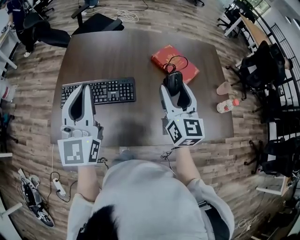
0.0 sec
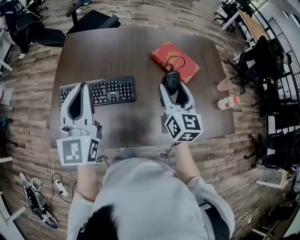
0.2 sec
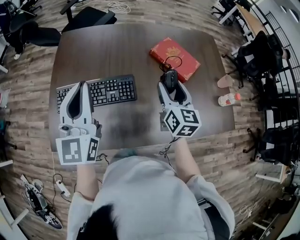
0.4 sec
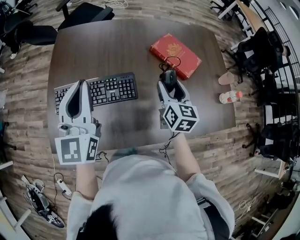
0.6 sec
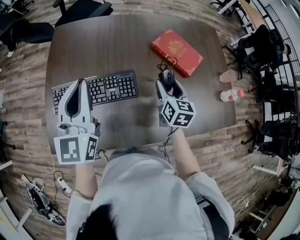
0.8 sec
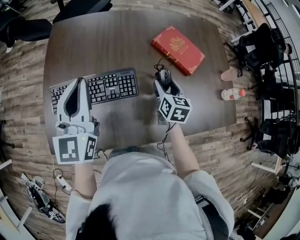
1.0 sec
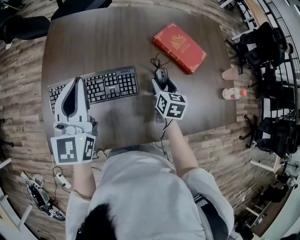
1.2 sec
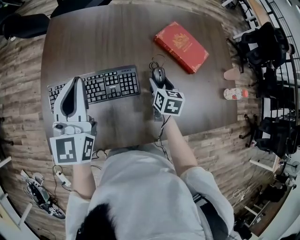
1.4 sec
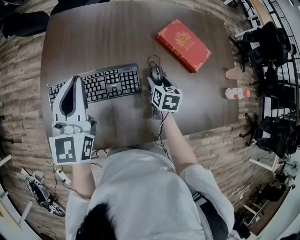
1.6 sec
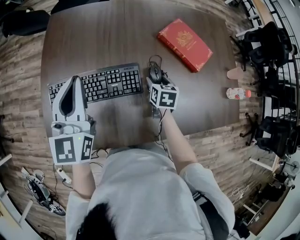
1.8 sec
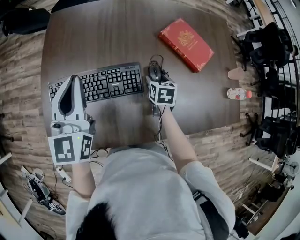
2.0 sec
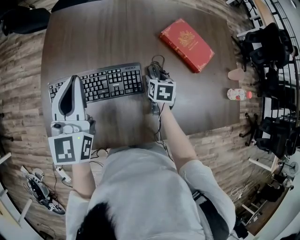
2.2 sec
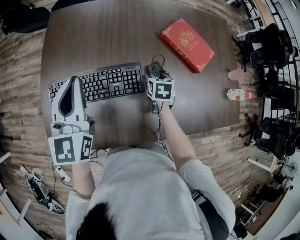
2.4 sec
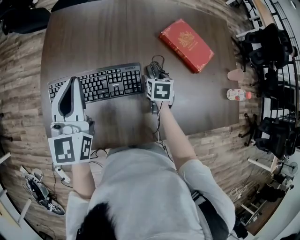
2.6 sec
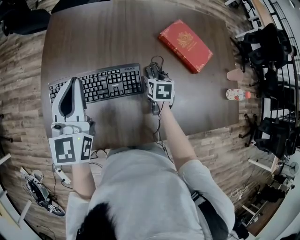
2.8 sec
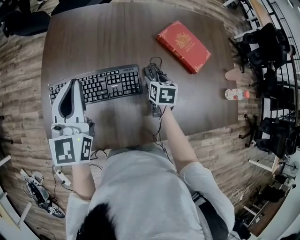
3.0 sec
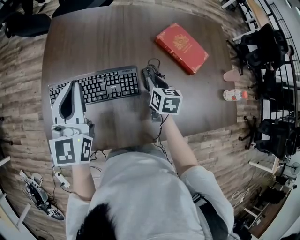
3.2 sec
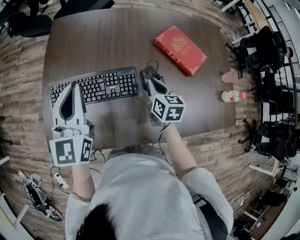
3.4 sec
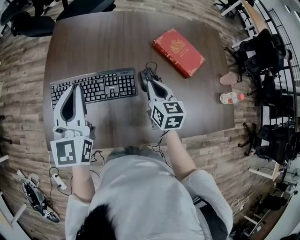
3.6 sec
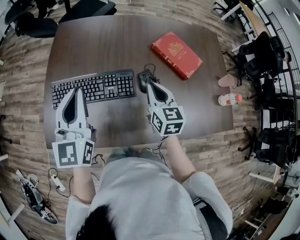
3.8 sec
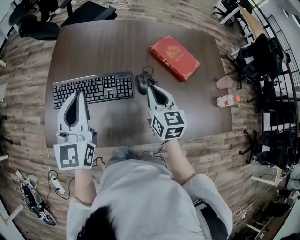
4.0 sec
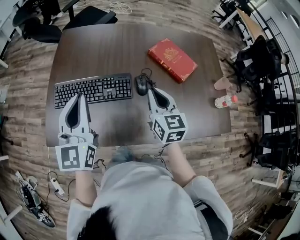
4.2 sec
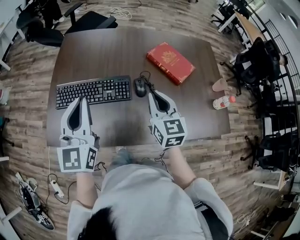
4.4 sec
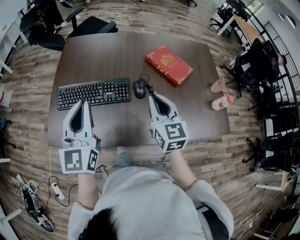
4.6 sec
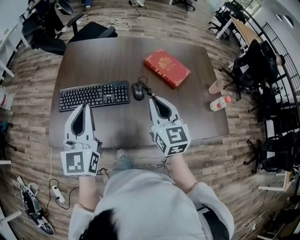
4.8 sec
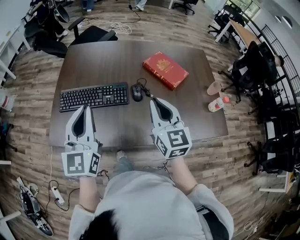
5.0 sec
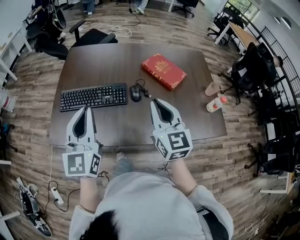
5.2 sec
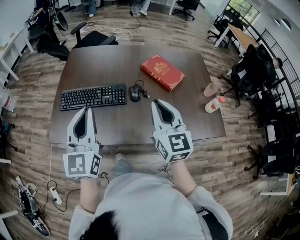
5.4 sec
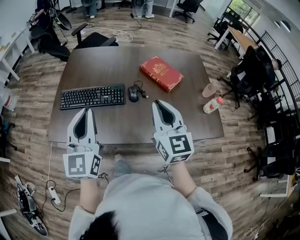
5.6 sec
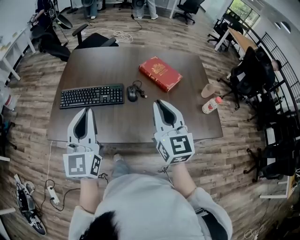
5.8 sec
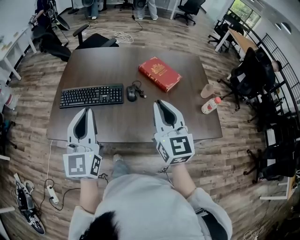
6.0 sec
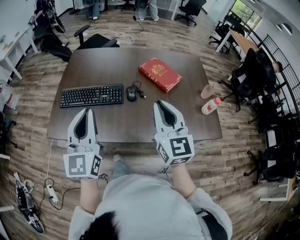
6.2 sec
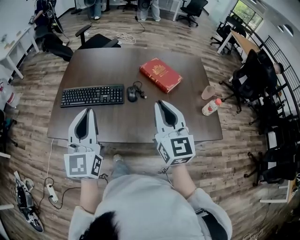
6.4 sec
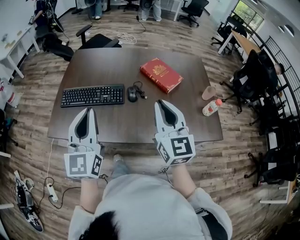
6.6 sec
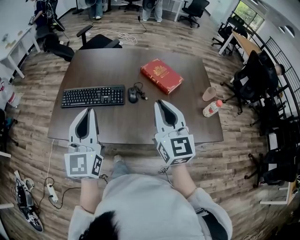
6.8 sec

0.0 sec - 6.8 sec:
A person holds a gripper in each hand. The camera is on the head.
0.0 sec - 1.4 sec: The left gripper shifts about 15 cm forward, downward and to the left. The right gripper moves downward, about 25 cm, and tilts its fingers some 40 degrees downward.
1.4 sec - 2.8 sec: The right gripper heads downward, covering about 5 cm.
2.8 sec - 4.0 sec: The left gripper moves backward, some 10 cm. The right gripper is displaced upward and backward by roughly 20 cm, points its fingers approximately 30 degrees further upward, and closes.
4.0 sec - 5.4 sec: The right gripper shifts about 20 cm backward and upward. Meanwhile the left gripper is displaced backward and to the right by roughly 15 cm.
5.4 sec - 6.8 sec: The right gripper changes place by roughly 5 cm.

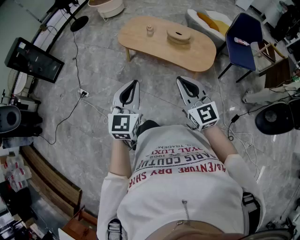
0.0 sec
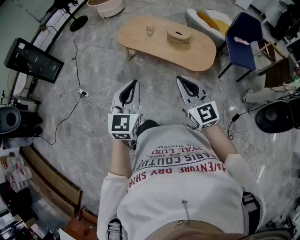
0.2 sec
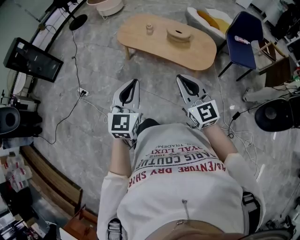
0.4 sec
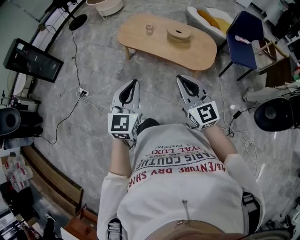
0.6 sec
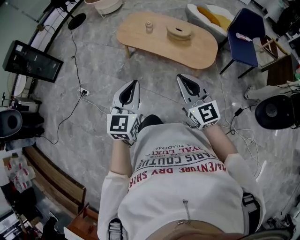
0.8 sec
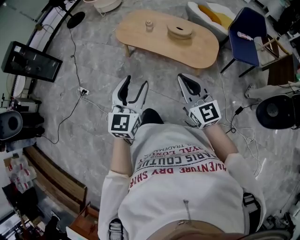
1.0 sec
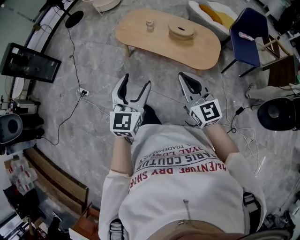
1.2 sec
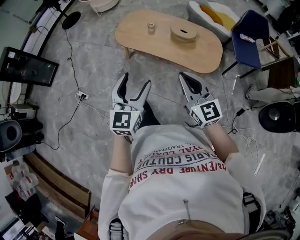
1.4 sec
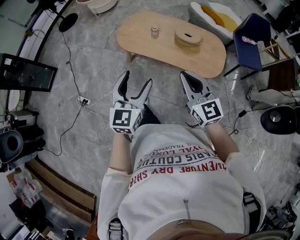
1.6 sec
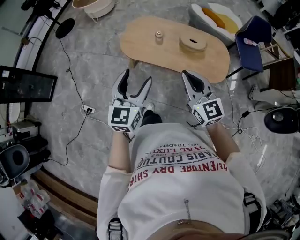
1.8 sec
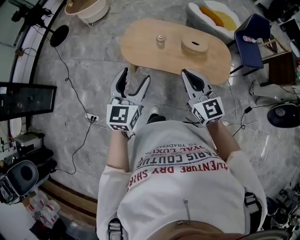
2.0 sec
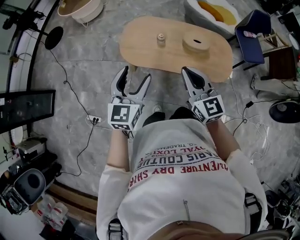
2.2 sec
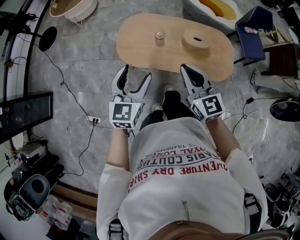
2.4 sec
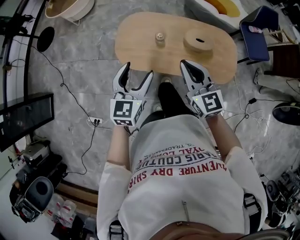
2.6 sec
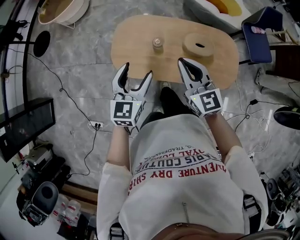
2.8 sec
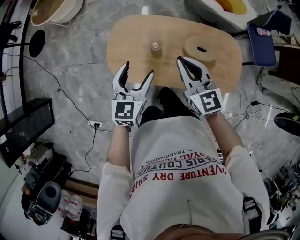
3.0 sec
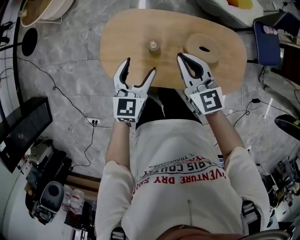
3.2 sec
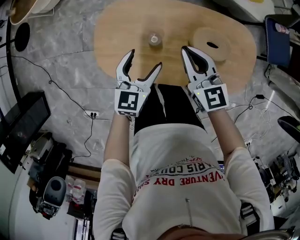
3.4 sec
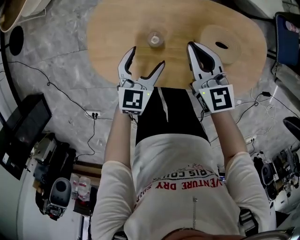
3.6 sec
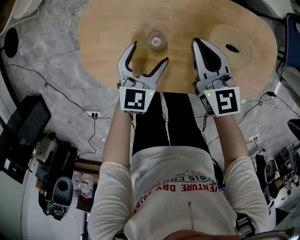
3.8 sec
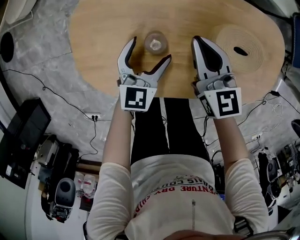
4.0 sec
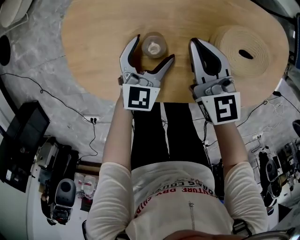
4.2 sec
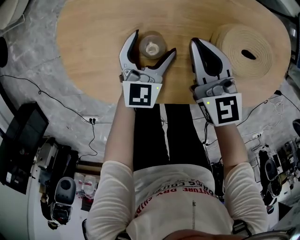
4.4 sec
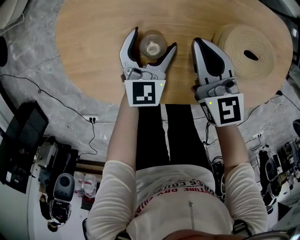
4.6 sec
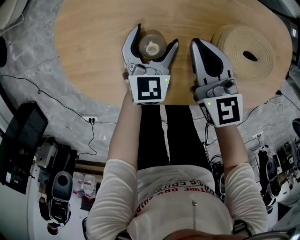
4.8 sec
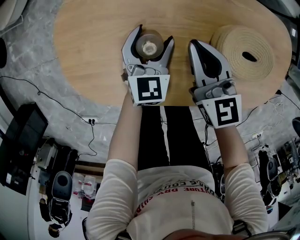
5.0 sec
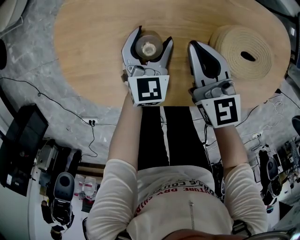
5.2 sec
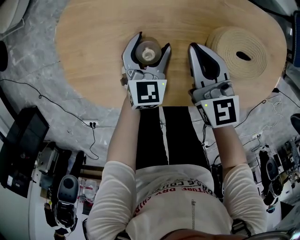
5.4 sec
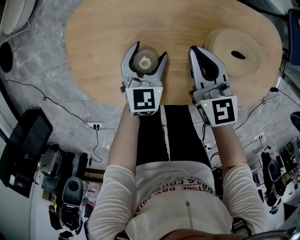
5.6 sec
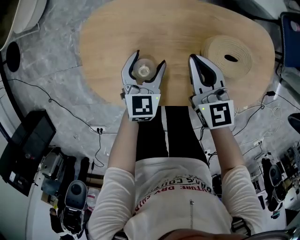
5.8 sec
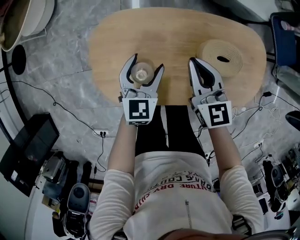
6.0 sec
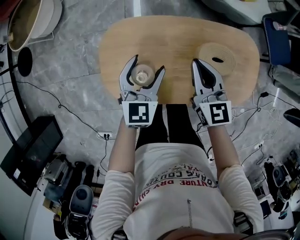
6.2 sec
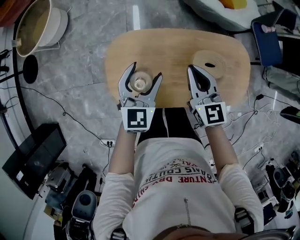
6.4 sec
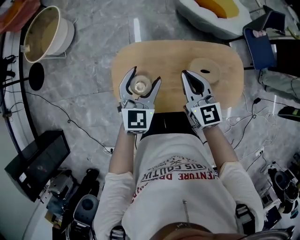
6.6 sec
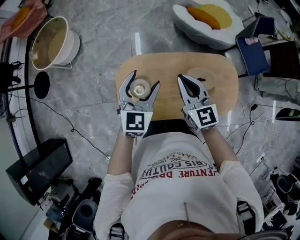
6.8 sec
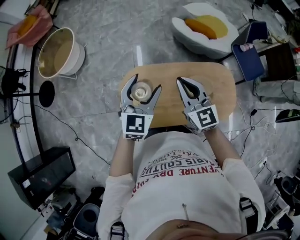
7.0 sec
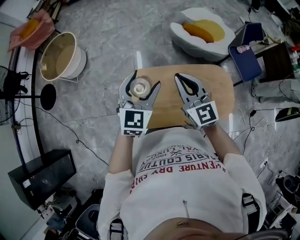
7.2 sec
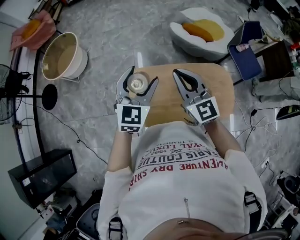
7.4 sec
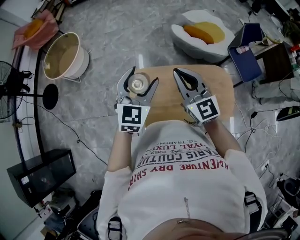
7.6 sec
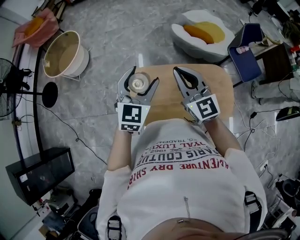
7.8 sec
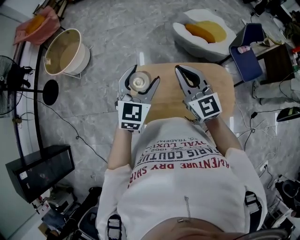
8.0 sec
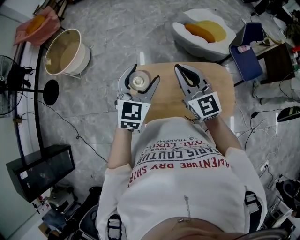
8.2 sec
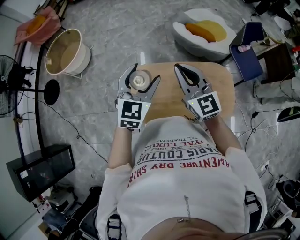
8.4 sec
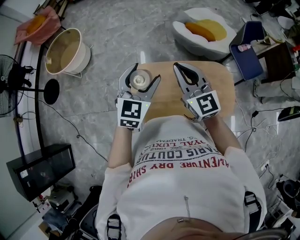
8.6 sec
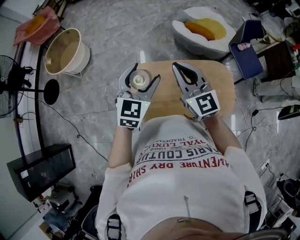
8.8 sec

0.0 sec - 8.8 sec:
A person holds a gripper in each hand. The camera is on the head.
0.0 sec - 1.4 sec: Both grippers move forward, roughly 15 cm. The left gripper opens up.
1.4 sec - 3.0 sec: Both grippers are carried forward, roughly 50 cm. The left gripper swivels some 20 degrees.
3.0 sec - 4.4 sec: The two grippers go some 35 cm downward.
4.4 sec - 5.8 sec: Both grippers travel together upward, some 10 cm.
5.8 sec - 7.4 sec: The two grippers go about 40 cm upward. The right gripper changes its angle by about 30 degrees. Meanwhile the left gripper rotates about 30 degrees.
7.4 sec - 8.8 sec: The grippers make only small movements.

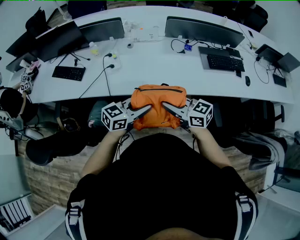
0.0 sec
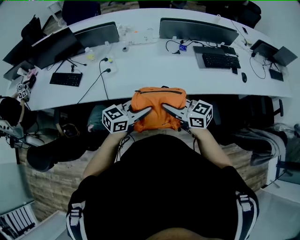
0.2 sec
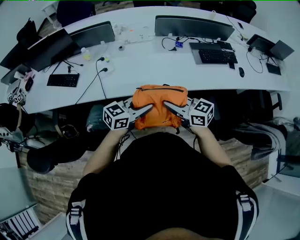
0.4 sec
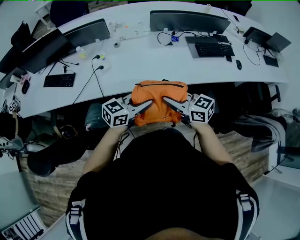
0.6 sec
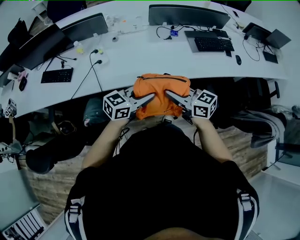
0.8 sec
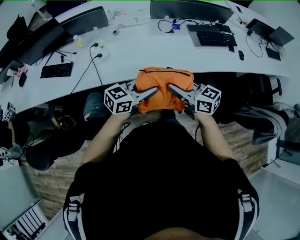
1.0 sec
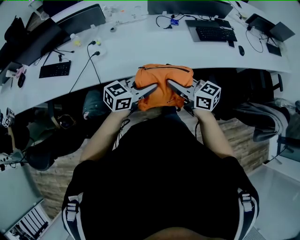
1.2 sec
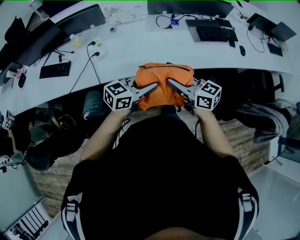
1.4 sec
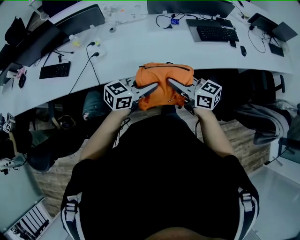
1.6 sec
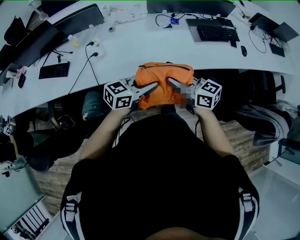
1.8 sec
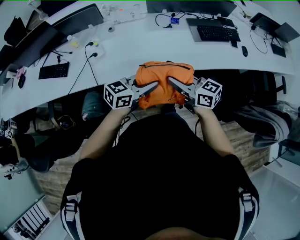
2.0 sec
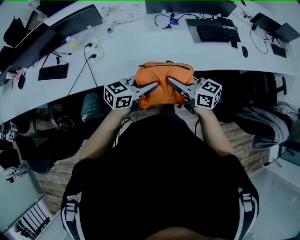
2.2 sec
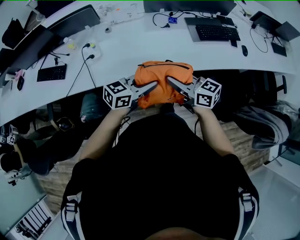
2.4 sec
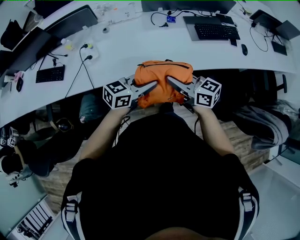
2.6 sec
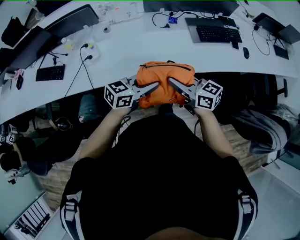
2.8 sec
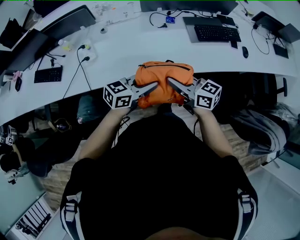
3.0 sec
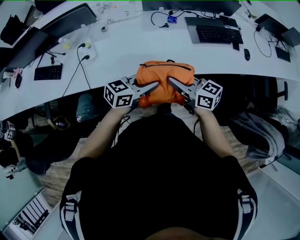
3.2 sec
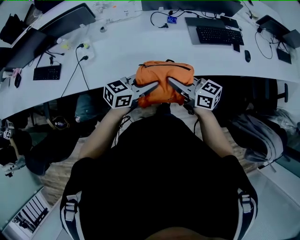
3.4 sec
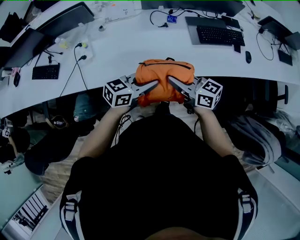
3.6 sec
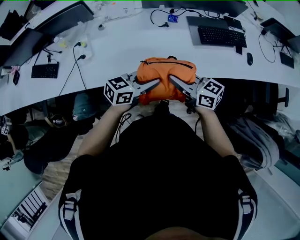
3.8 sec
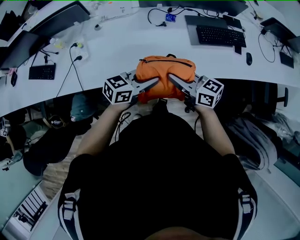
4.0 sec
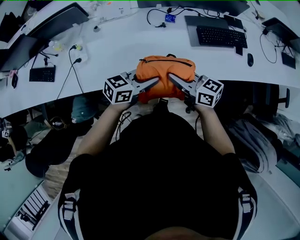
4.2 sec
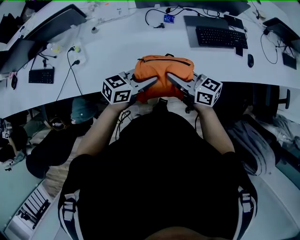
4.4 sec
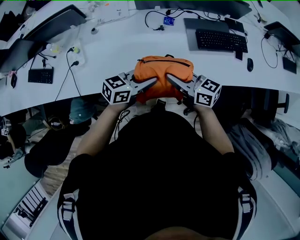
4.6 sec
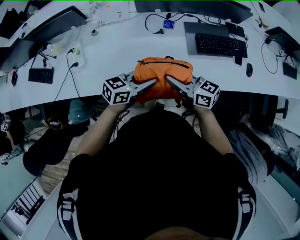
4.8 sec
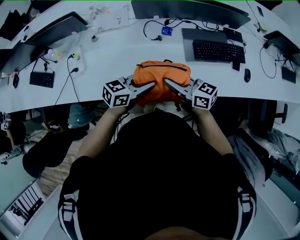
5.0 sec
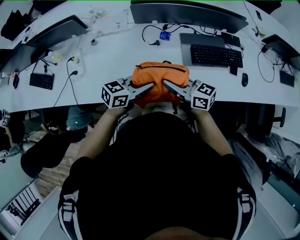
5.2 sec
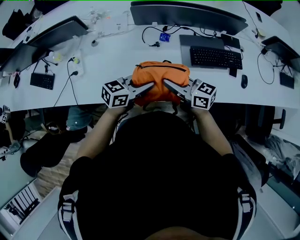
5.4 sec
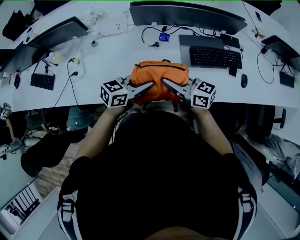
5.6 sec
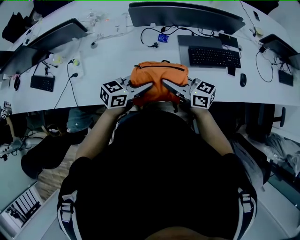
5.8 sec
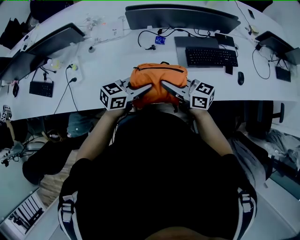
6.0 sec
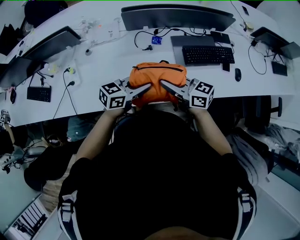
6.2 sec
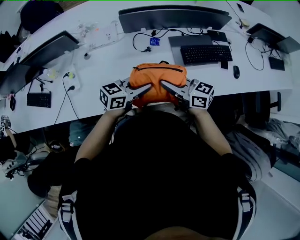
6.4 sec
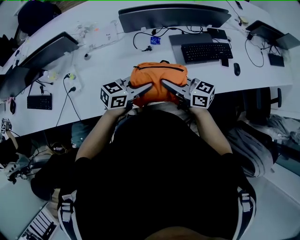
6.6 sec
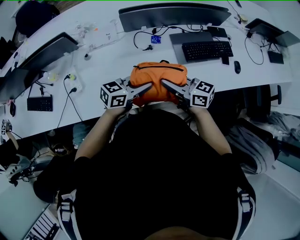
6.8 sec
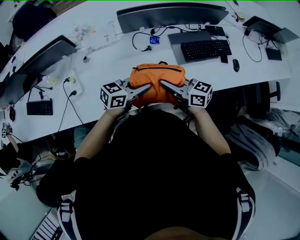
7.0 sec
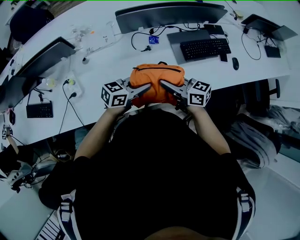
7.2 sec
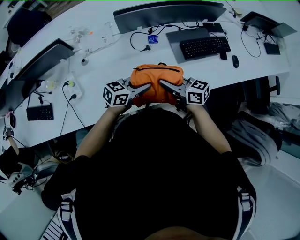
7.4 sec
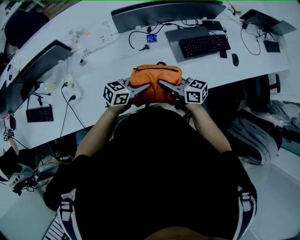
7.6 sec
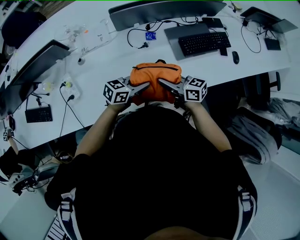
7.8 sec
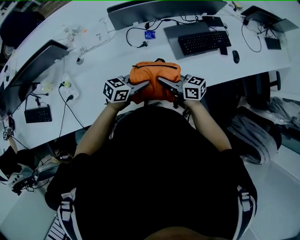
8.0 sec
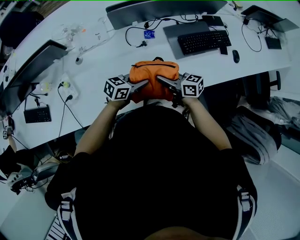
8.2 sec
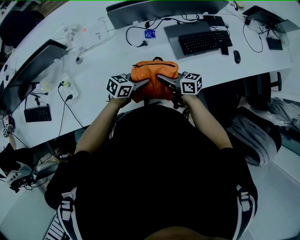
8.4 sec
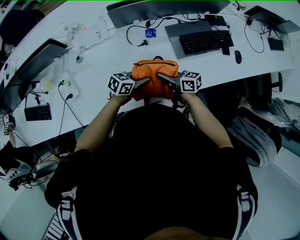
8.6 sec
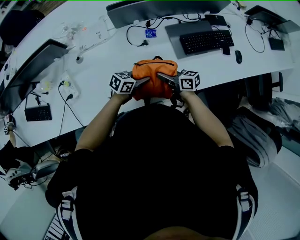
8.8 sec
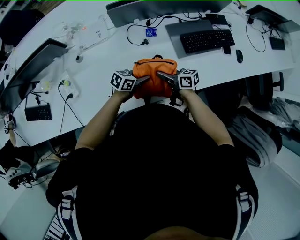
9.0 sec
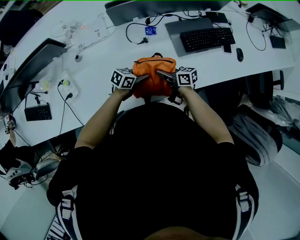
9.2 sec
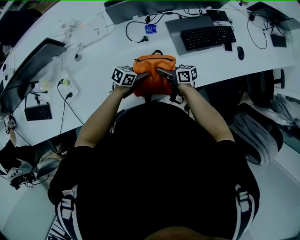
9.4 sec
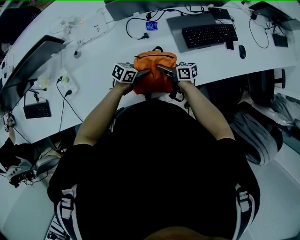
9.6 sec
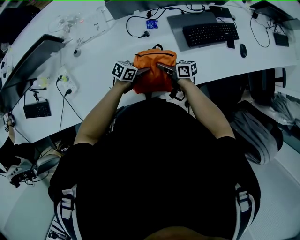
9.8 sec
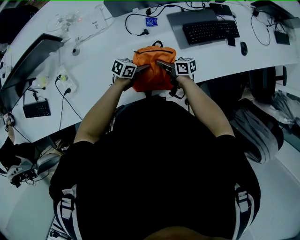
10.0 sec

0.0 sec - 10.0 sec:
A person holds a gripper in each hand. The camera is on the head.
0.0 sec - 1.4 sec: The right gripper shifts by about 5 cm; the left gripper changes place by roughly 5 cm.
1.4 sec - 2.8 sec: The left gripper ends up some 10 cm from where it was, while the right gripper changes place by about 10 cm.
2.8 sec - 4.2 sec: The left gripper moves roughly 15 cm. The right gripper ends up some 15 cm from where it was.
4.2 sec - 5.8 sec: The right gripper moves roughly 10 cm. Meanwhile the left gripper moves roughly 10 cm.
5.8 sec - 7.2 sec: The right gripper moves approximately 5 cm; the left gripper moves approximately 5 cm.
7.2 sec - 8.6 sec: The two grippers go about 15 cm downward.
8.6 sec - 10.0 sec: The two grippers go approximately 10 cm downward.
